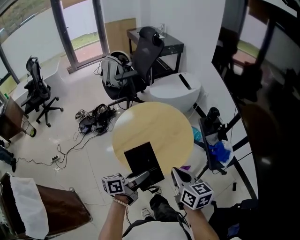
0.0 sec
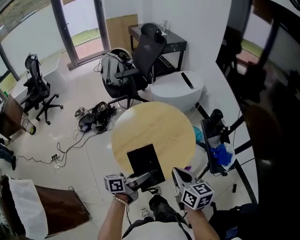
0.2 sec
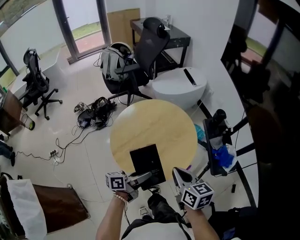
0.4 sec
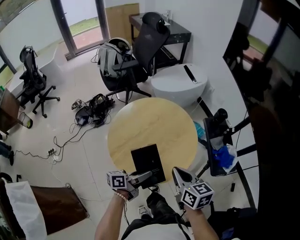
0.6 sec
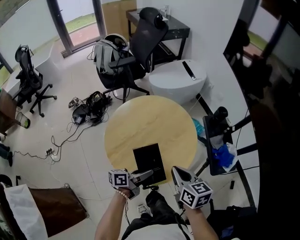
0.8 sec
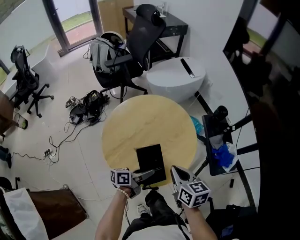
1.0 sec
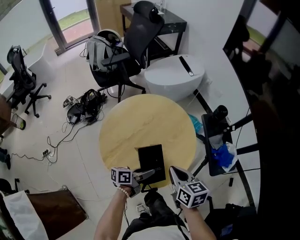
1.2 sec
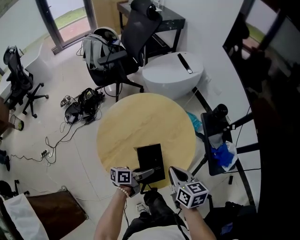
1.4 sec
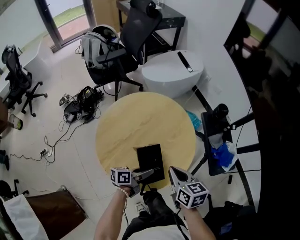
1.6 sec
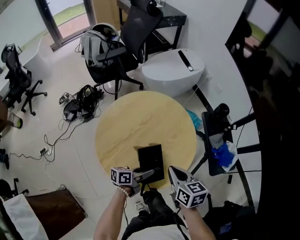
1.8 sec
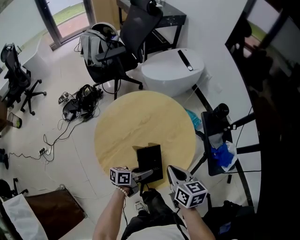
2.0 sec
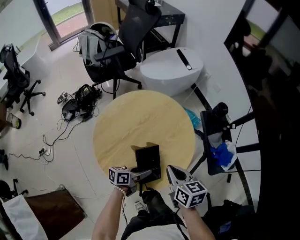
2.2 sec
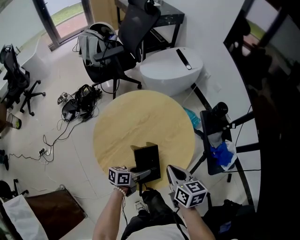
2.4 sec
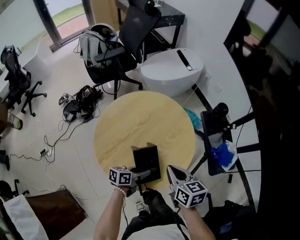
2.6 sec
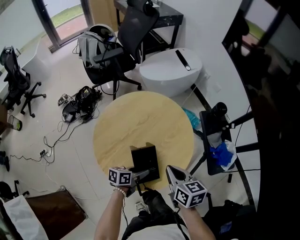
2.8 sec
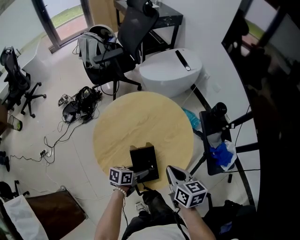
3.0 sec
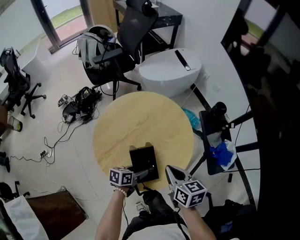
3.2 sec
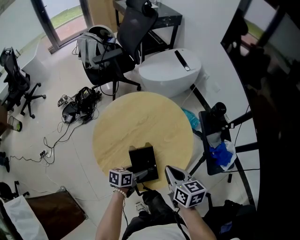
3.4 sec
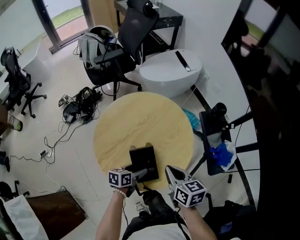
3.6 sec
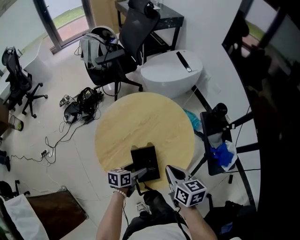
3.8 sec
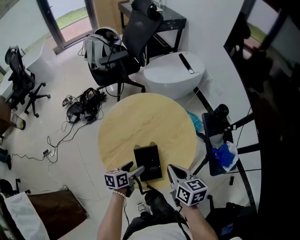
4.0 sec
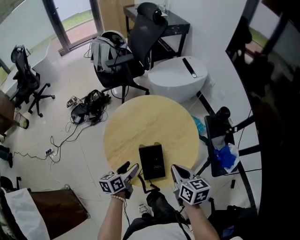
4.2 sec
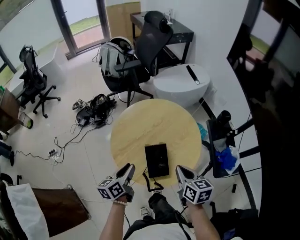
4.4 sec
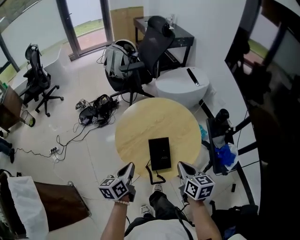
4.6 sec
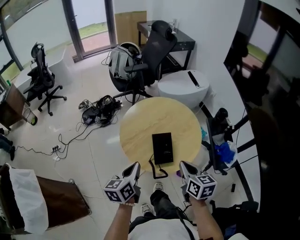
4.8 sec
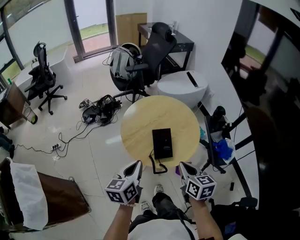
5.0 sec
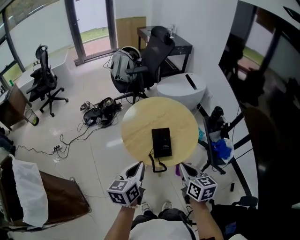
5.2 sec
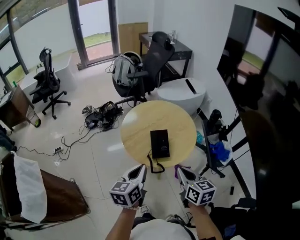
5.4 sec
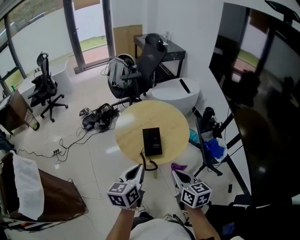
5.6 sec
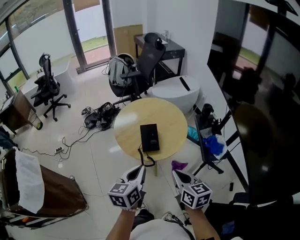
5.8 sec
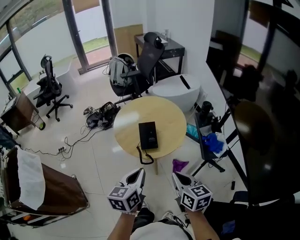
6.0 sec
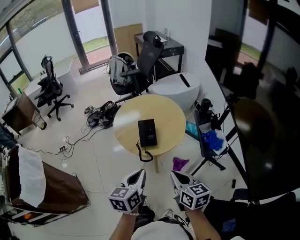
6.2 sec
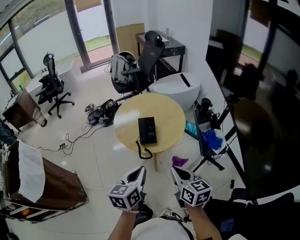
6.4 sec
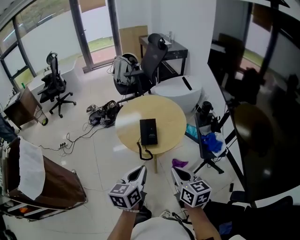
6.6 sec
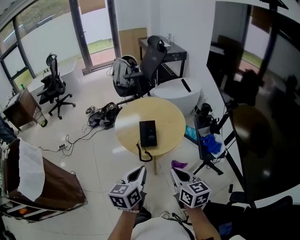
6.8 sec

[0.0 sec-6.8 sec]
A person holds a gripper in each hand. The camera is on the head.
0.0 sec to 1.4 sec: The right gripper moves forward and downward, roughly 15 cm. Meanwhile the left gripper moves downward and forward, about 20 cm, and turns by approximately 20 degrees.
1.4 sec to 2.8 sec: There are only small adjustments of the grippers.
2.8 sec to 4.0 sec: The left gripper heads to the left, covering approximately 5 cm, and opens up.
4.0 sec to 5.4 sec: The left gripper goes some 30 cm upward and backward, rotates about 30 degrees, and closes, while the right gripper moves backward and upward, roughly 20 cm.
5.4 sec to 6.8 sec: The two grippers go about 15 cm backward and to the right.

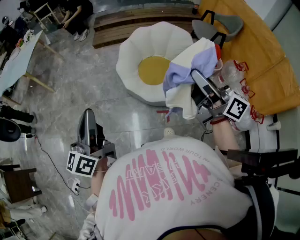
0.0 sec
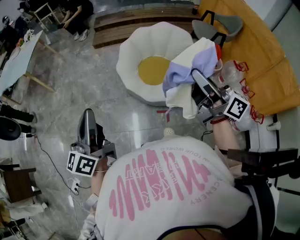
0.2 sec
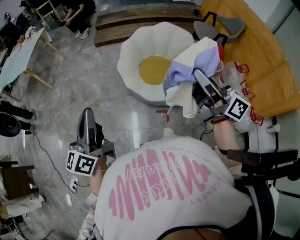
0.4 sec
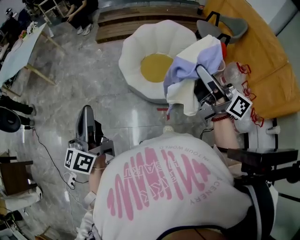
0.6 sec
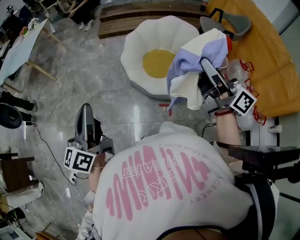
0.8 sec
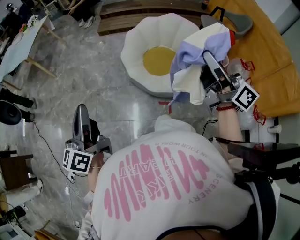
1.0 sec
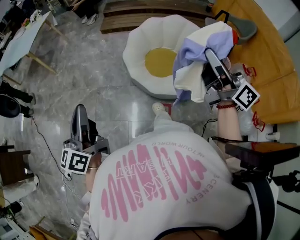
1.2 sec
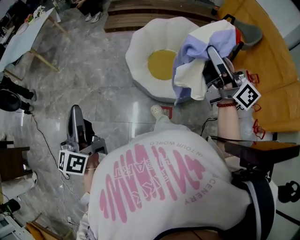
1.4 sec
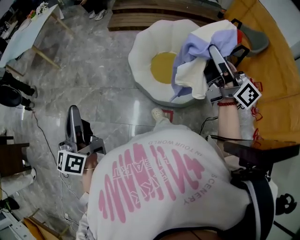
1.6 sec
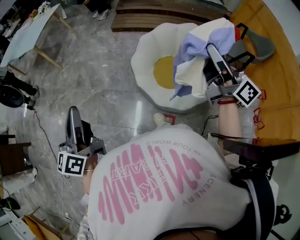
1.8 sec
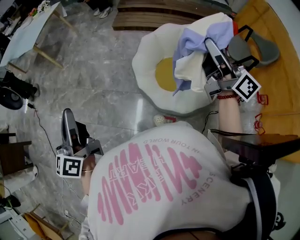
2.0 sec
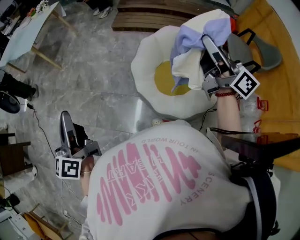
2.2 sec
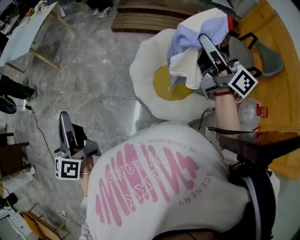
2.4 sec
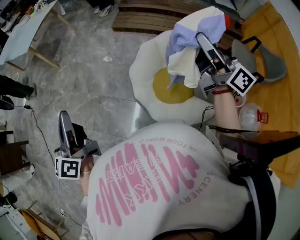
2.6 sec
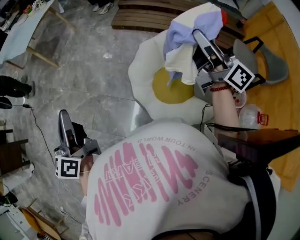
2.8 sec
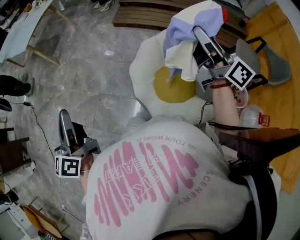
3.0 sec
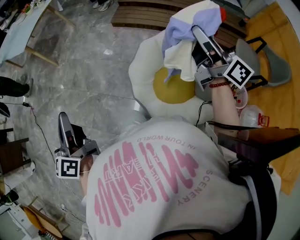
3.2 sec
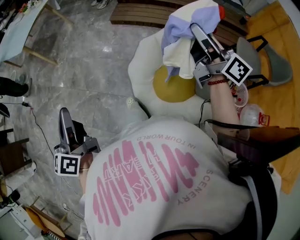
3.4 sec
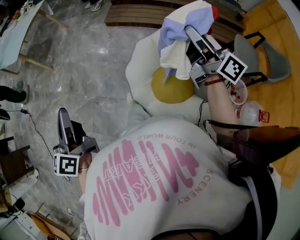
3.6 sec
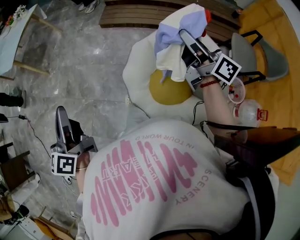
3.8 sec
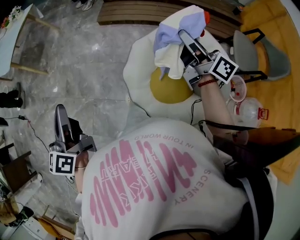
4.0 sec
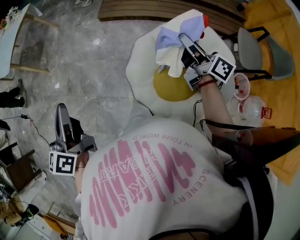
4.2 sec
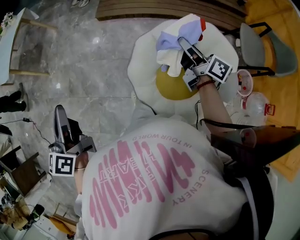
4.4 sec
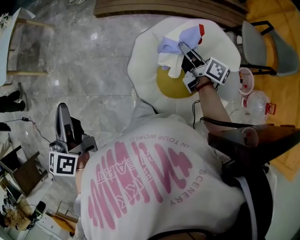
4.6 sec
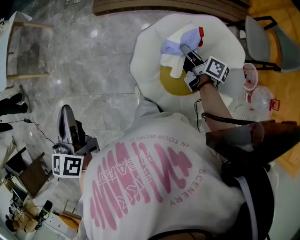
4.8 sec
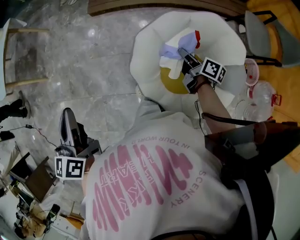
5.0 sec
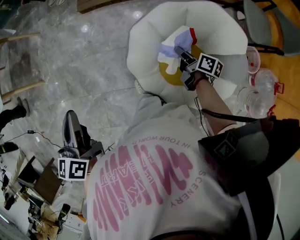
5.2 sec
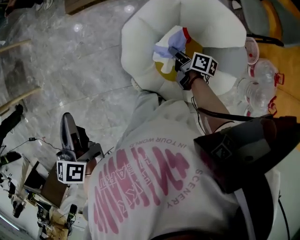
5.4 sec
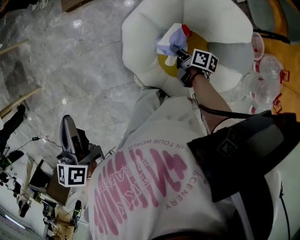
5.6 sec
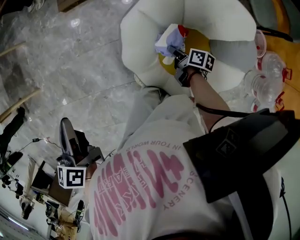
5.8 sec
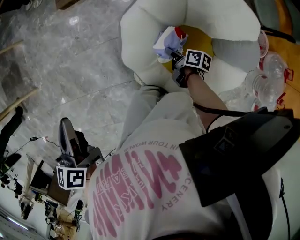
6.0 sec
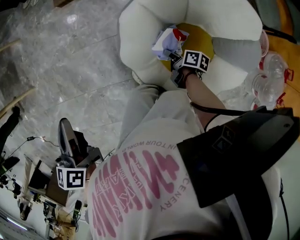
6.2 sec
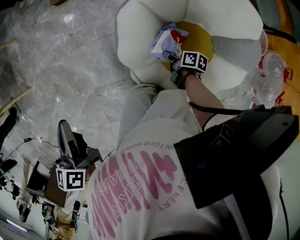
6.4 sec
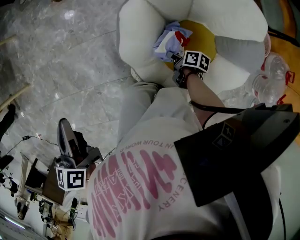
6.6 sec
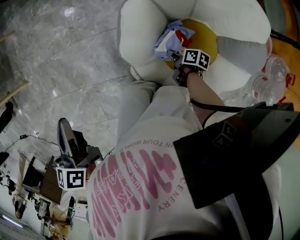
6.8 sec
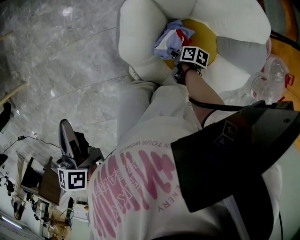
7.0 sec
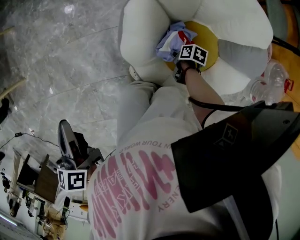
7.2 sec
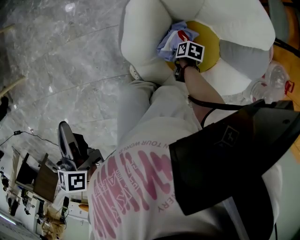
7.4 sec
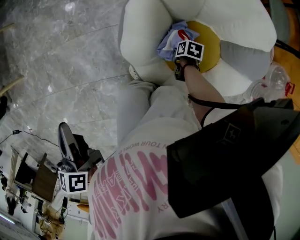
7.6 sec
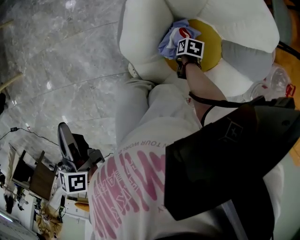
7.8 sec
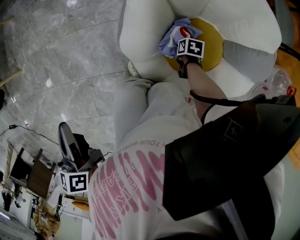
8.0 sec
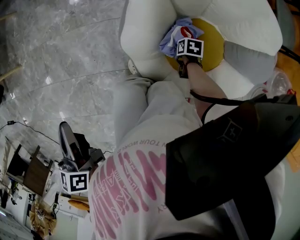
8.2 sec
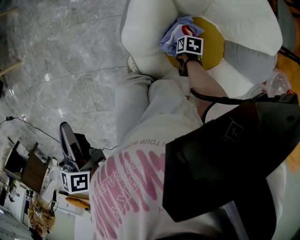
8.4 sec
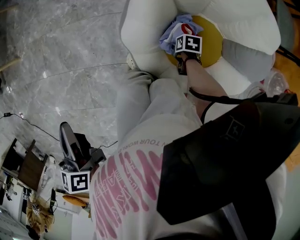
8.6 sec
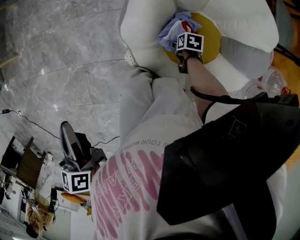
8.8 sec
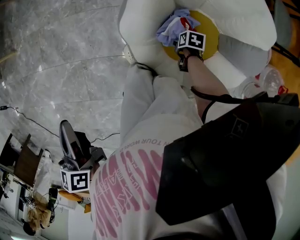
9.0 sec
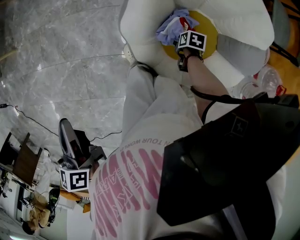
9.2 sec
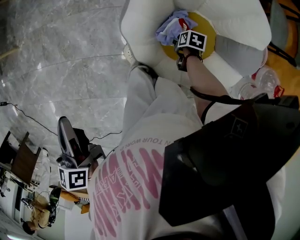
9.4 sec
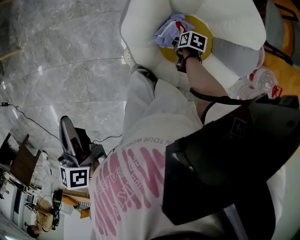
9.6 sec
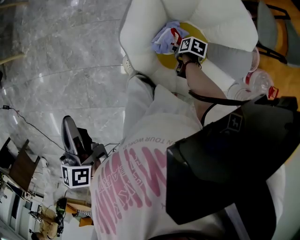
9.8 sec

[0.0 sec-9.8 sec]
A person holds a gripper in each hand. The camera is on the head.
0.0 sec to 1.4 sec: The right gripper is displaced forward by some 10 cm. The left gripper heads to the left, covering about 5 cm.
1.4 sec to 2.8 sec: The right gripper travels forward by roughly 35 cm, while the left gripper moves forward, about 20 cm.
2.8 sec to 4.2 sec: The right gripper is displaced downward and forward by approximately 20 cm, and rotates about 20 degrees. The left gripper heads forward, covering roughly 15 cm.
4.2 sec to 5.6 sec: The right gripper moves downward, roughly 35 cm, and tilts its fingers some 40 degrees downward. The left gripper is displaced forward and downward by approximately 15 cm, and swivels some 30 degrees.
5.6 sec to 7.0 sec: The left gripper moves downward, approximately 10 cm. The right gripper shifts some 15 cm downward, and changes its angle by some 20 degrees.
7.0 sec to 8.4 sec: The left gripper moves about 5 cm. Meanwhile the right gripper is displaced downward by approximately 5 cm, rotates some 40 degrees, and opens up.
8.4 sec to 9.8 sec: The grippers both shift upward by roughly 10 cm. The right gripper opens its fingers.

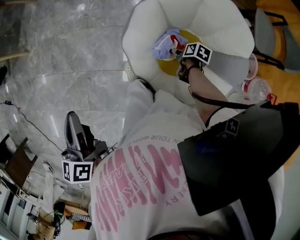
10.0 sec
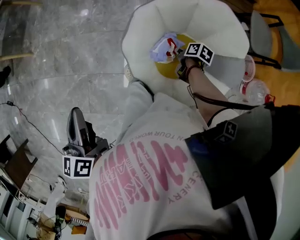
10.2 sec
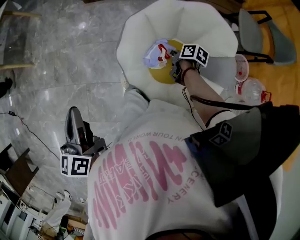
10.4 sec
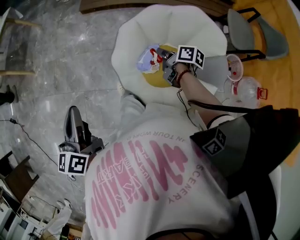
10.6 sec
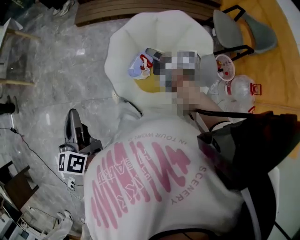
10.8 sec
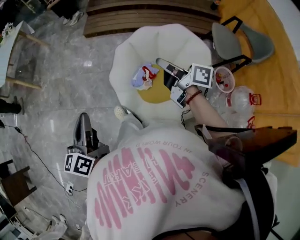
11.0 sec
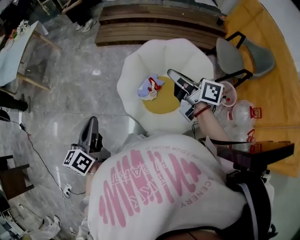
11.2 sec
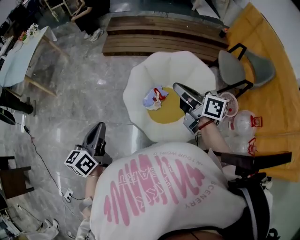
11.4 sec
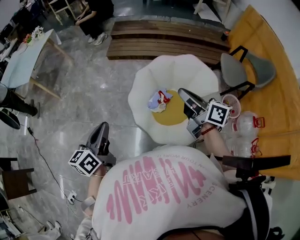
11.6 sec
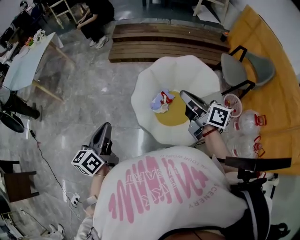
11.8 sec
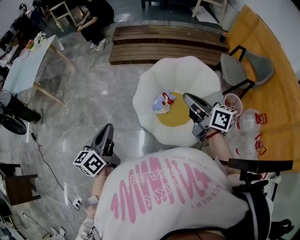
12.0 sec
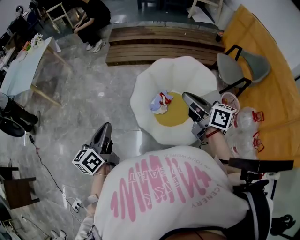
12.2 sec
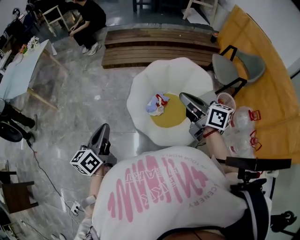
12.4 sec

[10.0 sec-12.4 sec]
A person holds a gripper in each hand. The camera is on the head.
10.0 sec to 11.2 sec: The left gripper shifts about 15 cm backward and to the right, while the right gripper is displaced upward by roughly 40 cm, points its fingers some 70 degrees further upward, and closes.
11.2 sec to 12.4 sec: The right gripper is displaced backward by some 10 cm, and rotates roughly 20 degrees.

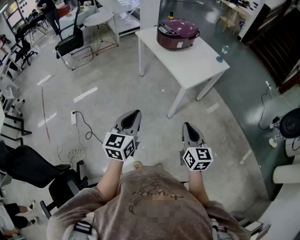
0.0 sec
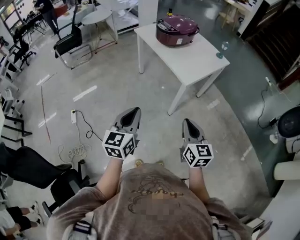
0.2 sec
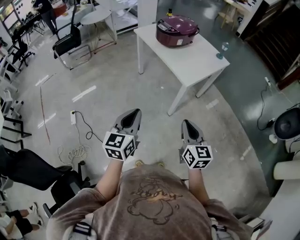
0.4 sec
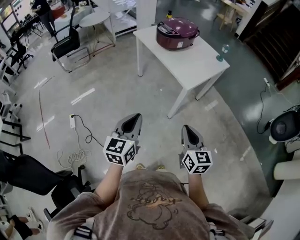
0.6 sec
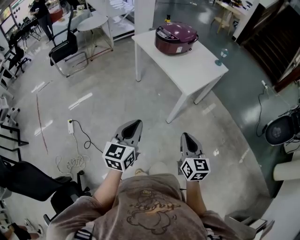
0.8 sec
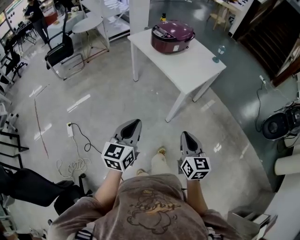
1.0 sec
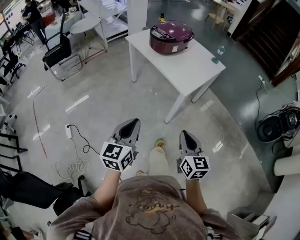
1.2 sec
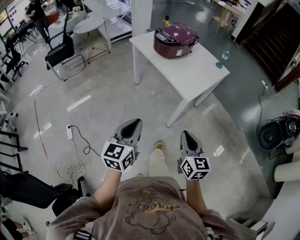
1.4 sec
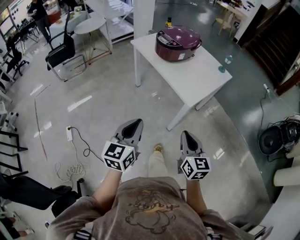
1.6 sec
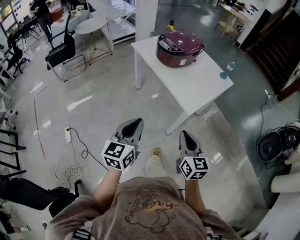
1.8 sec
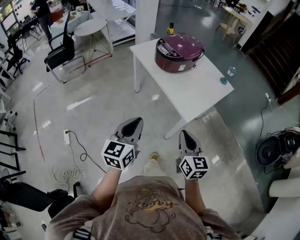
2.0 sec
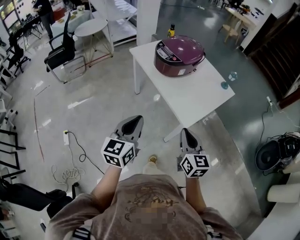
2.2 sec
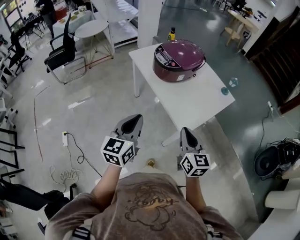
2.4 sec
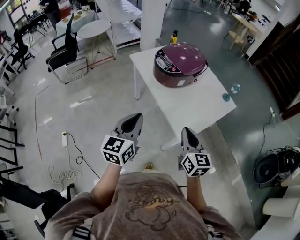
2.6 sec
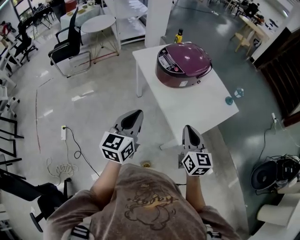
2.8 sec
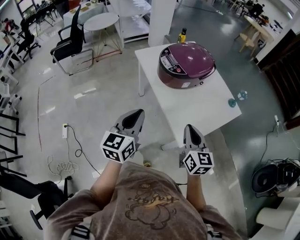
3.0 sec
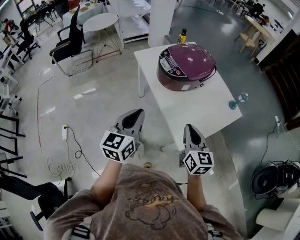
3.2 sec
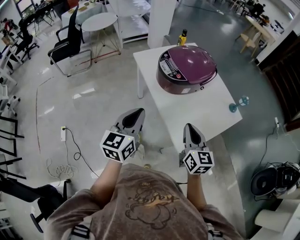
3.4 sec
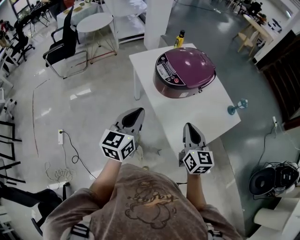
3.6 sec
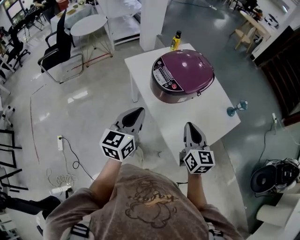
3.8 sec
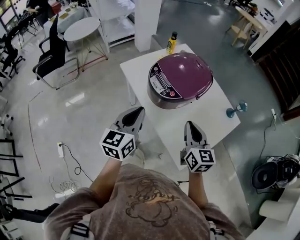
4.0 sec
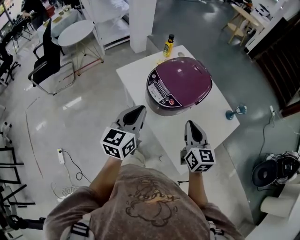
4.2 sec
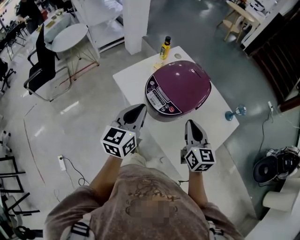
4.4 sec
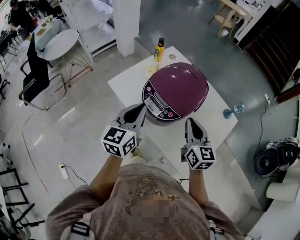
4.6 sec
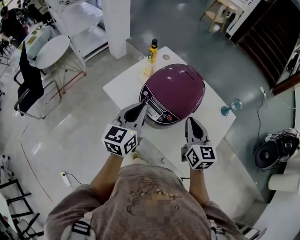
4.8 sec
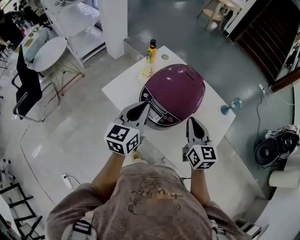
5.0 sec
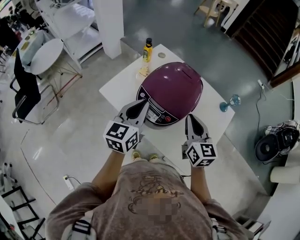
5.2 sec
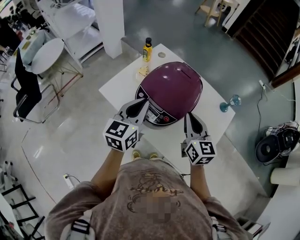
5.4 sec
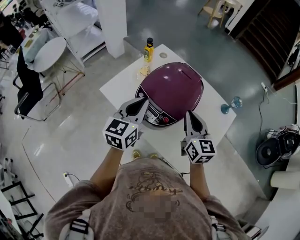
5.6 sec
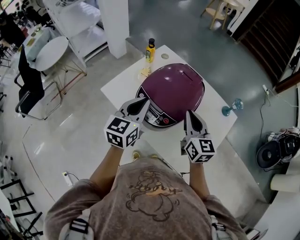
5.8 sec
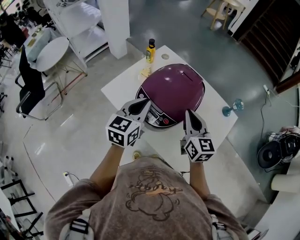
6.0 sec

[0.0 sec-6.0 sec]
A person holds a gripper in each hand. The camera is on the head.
0.0 sec to 1.6 sec: The right gripper heads forward and to the left, covering about 15 cm; the left gripper shifts about 10 cm forward.
1.6 sec to 3.0 sec: The grippers both shift forward by about 30 cm.
3.0 sec to 4.4 sec: Both grippers move forward, approximately 25 cm.
4.4 sec to 6.0 sec: Both grippers travel together forward, about 10 cm.
